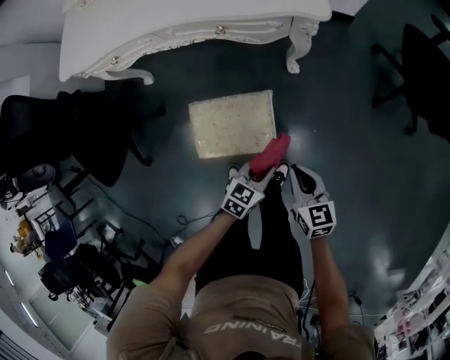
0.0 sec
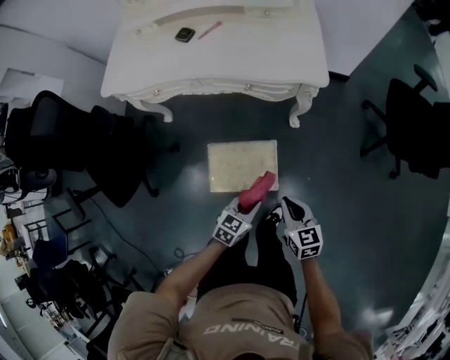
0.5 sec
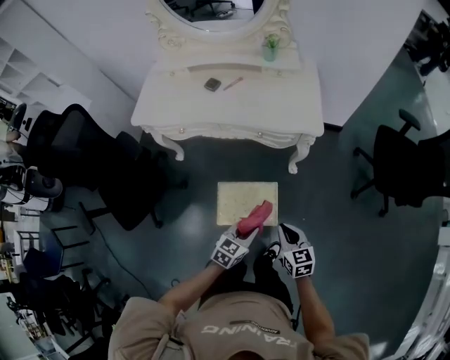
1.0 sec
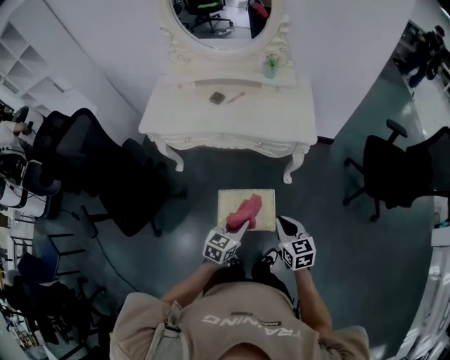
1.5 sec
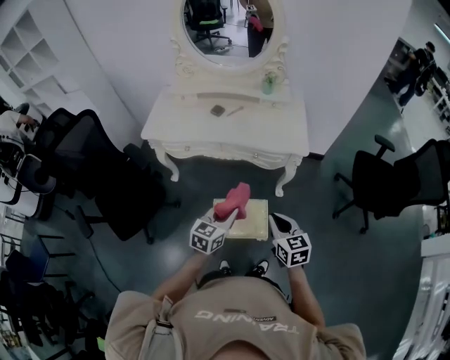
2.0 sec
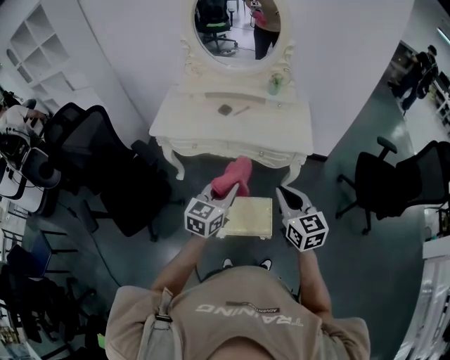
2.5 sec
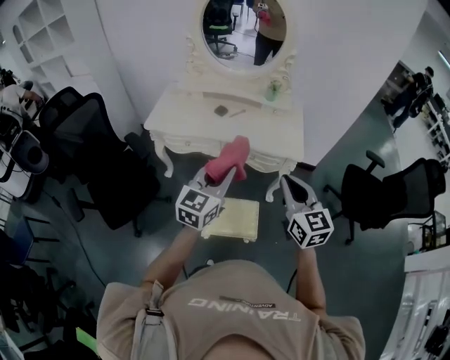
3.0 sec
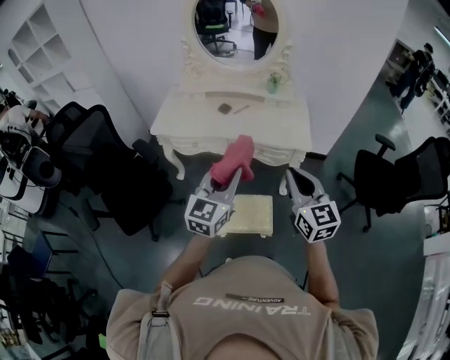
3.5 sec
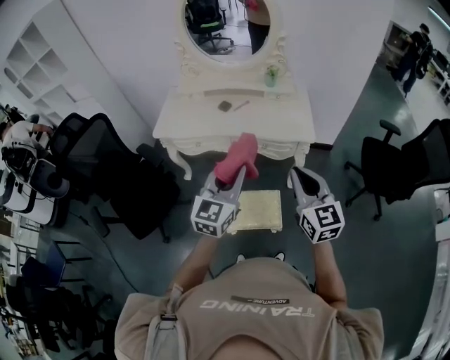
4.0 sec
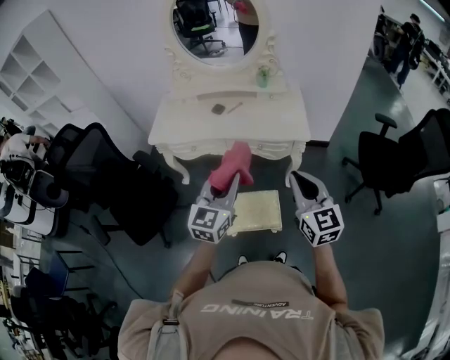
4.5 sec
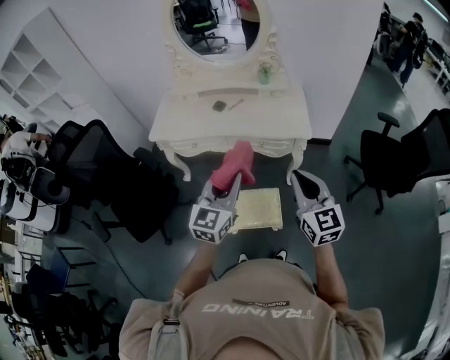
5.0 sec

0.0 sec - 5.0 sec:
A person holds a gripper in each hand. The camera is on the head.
0.0 sec - 2.5 sec: The left gripper heads upward and to the left, covering some 60 cm, and turns by some 40 degrees; the right gripper shifts approximately 50 cm upward, and turns by approximately 30 degrees.
2.5 sec - 5.0 sec: The left gripper goes approximately 5 cm upward, while the right gripper shifts roughly 10 cm to the right and upward.

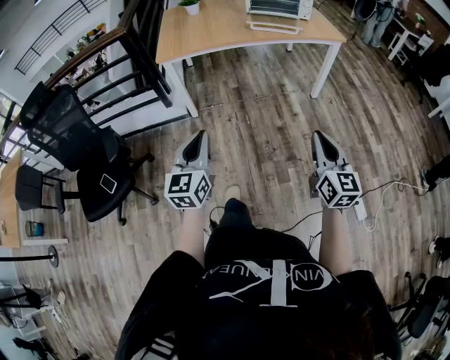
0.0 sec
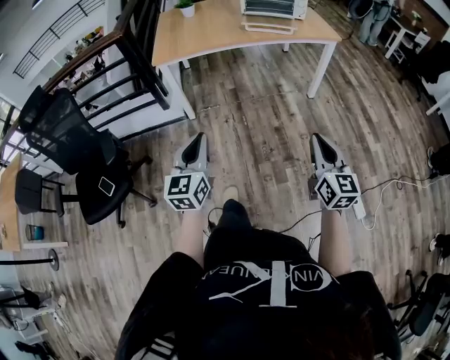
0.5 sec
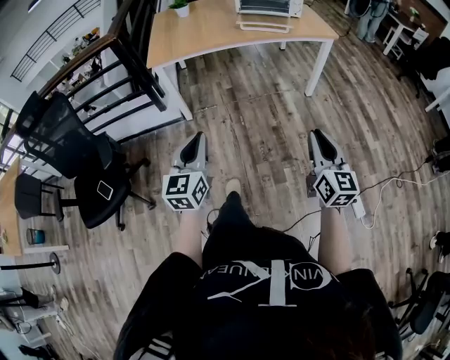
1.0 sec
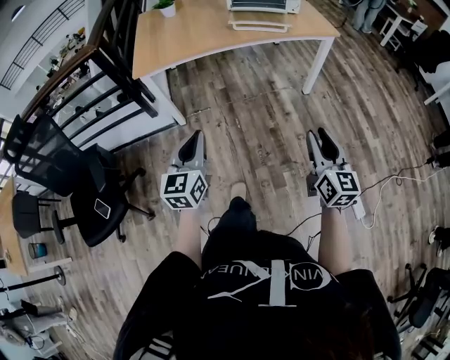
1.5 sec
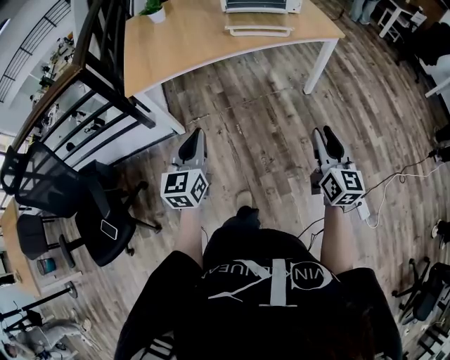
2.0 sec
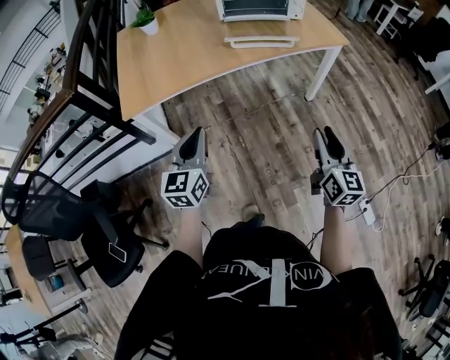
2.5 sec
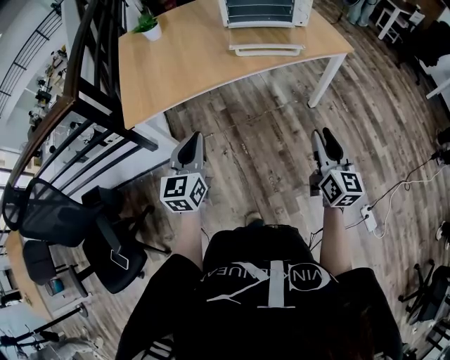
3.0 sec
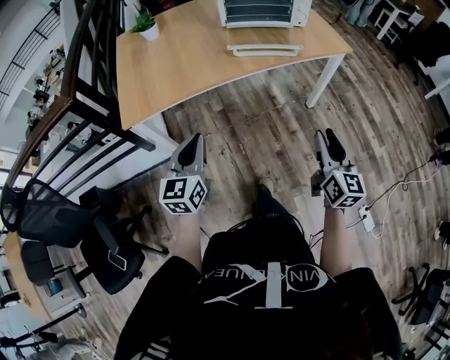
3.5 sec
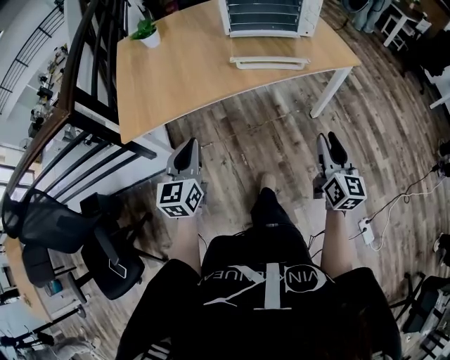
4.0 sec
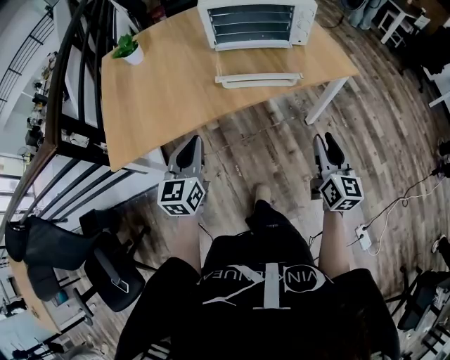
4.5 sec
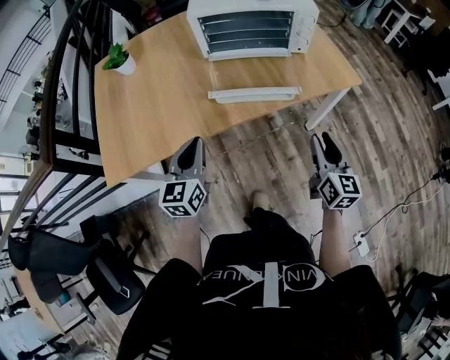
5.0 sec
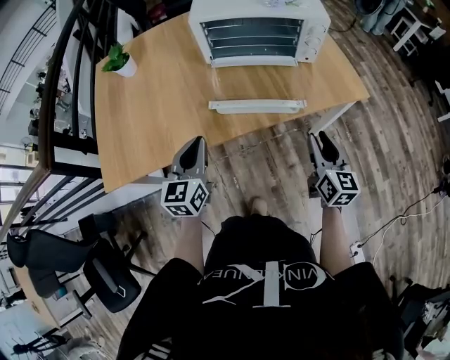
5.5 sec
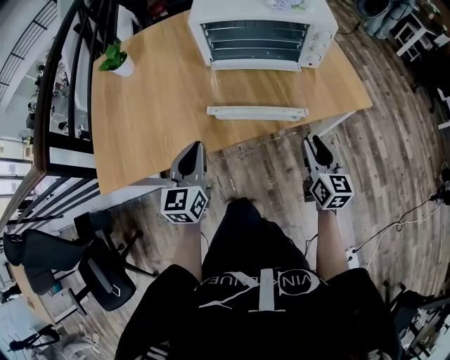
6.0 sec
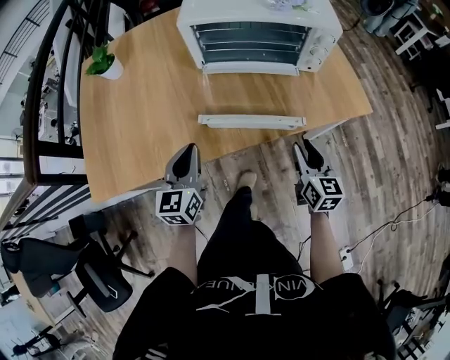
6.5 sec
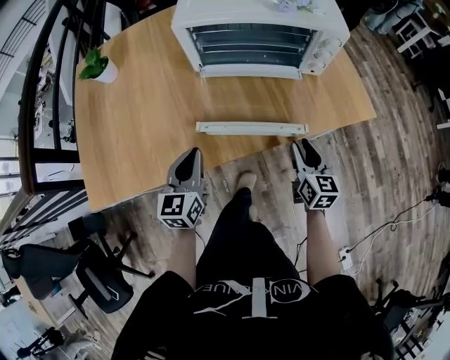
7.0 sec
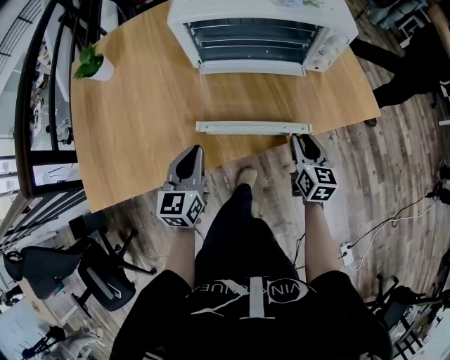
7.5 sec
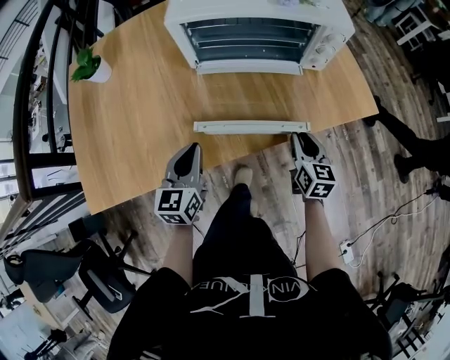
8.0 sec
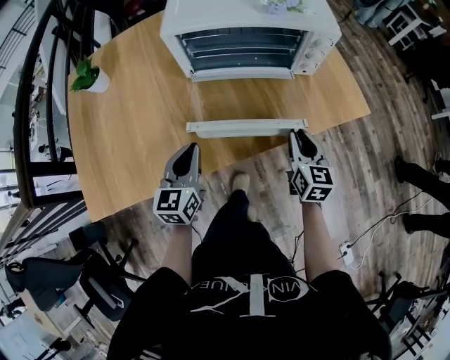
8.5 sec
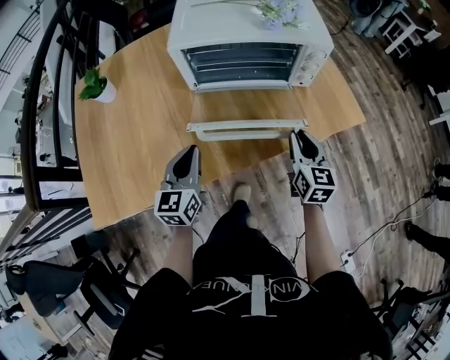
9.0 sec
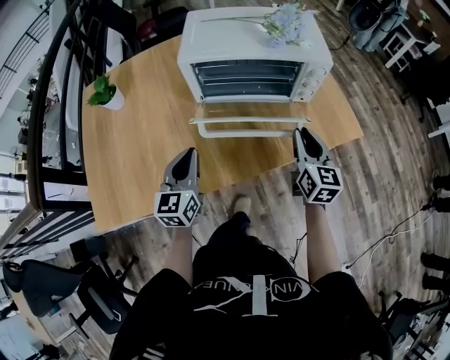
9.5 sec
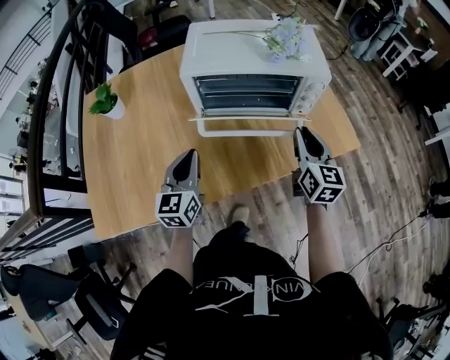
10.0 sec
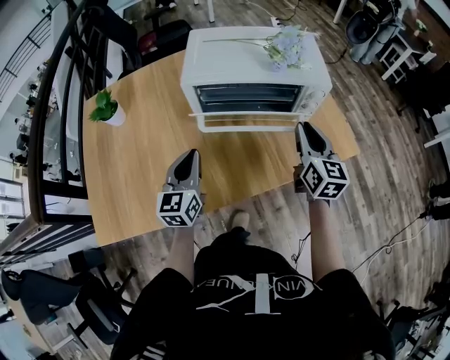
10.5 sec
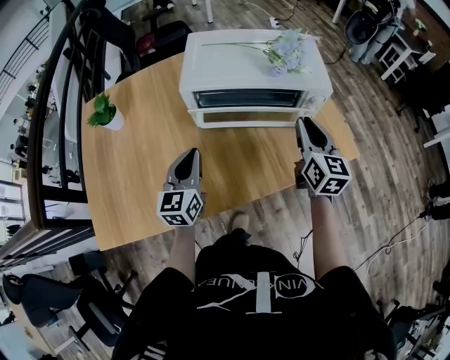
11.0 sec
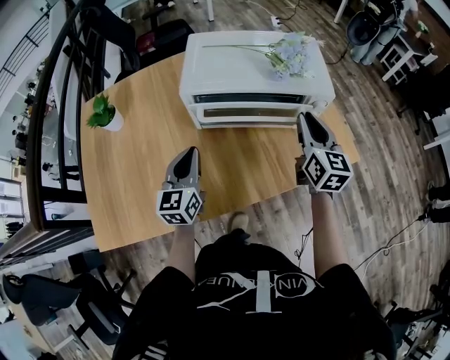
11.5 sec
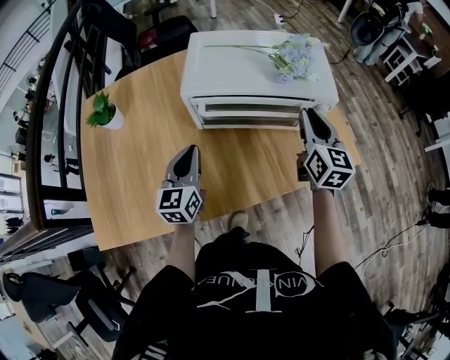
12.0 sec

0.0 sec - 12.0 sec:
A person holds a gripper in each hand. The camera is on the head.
0.0 sec - 2.0 sec: The grippers both shift forward by approximately 25 cm.
2.0 sec - 4.0 sec: Both grippers travel together forward, approximately 20 cm.
4.0 sec - 6.0 sec: Both grippers move forward, approximately 25 cm.
6.0 sec - 8.0 sec: Both grippers travel together forward and downward, some 10 cm.
8.0 sec - 10.0 sec: The right gripper heads upward and forward, covering roughly 20 cm, while the left gripper is displaced upward and forward by approximately 10 cm.
10.0 sec - 12.0 sec: The left gripper travels forward by some 5 cm; the right gripper moves forward and upward, approximately 10 cm.

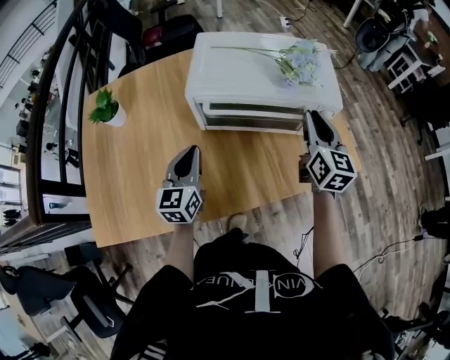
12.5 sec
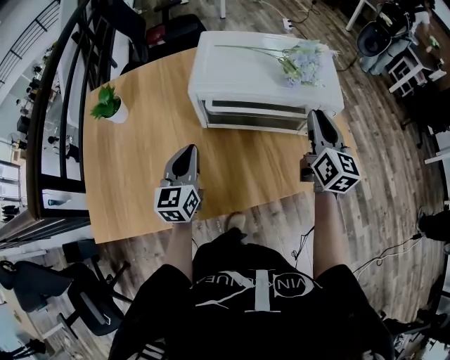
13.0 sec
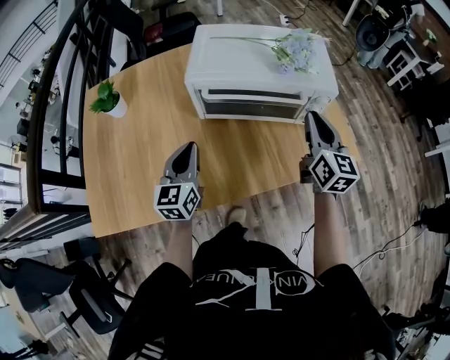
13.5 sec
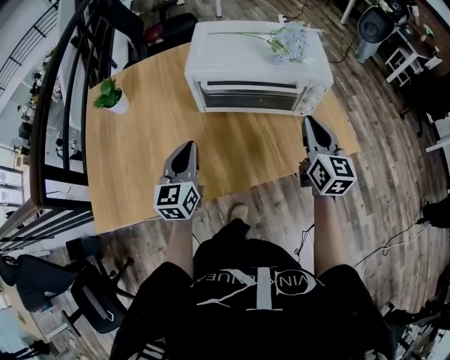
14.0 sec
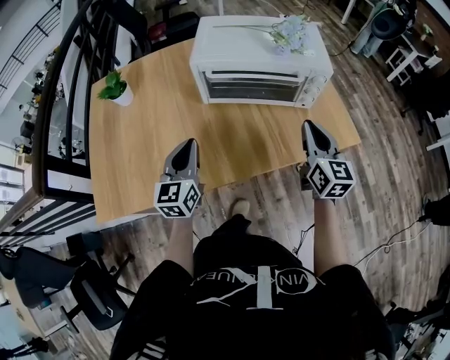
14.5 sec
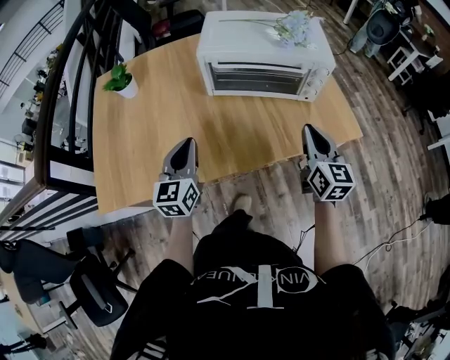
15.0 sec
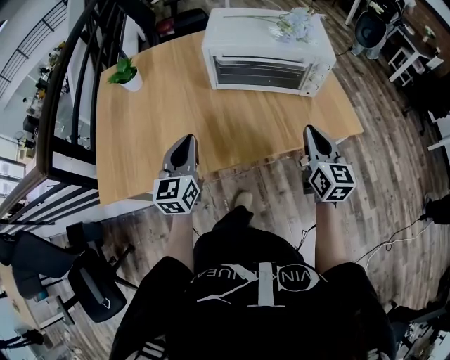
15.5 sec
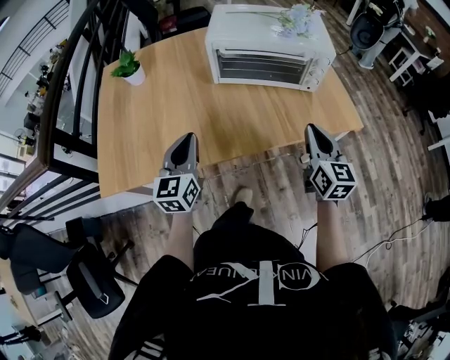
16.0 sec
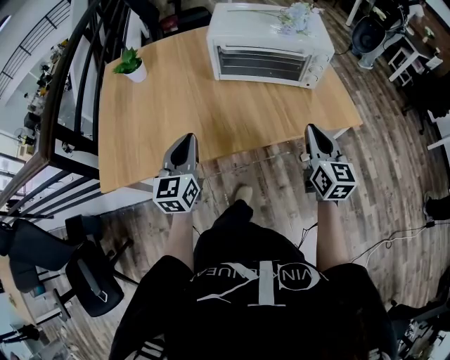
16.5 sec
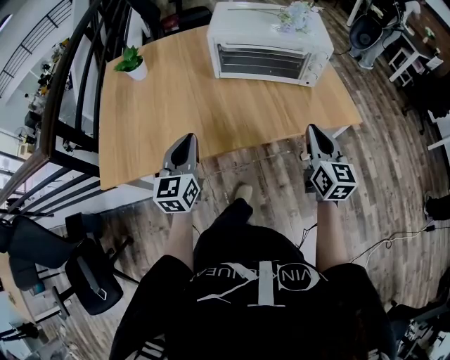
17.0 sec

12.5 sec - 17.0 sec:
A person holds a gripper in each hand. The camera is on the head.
12.5 sec - 14.5 sec: The two grippers go roughly 10 cm backward.
14.5 sec - 17.0 sec: The grippers both shift backward by approximately 10 cm.

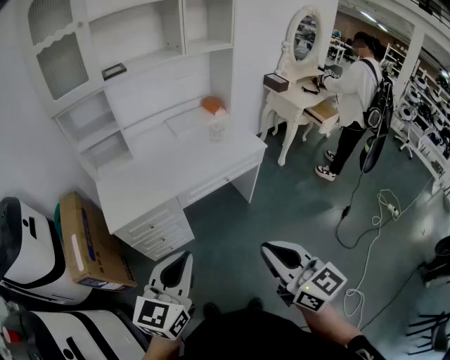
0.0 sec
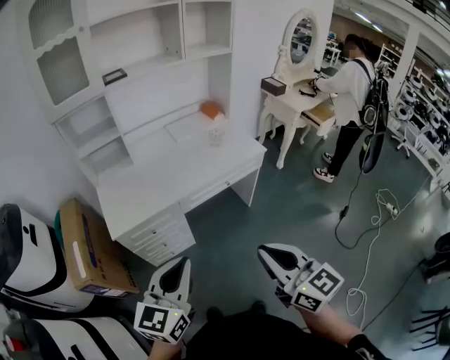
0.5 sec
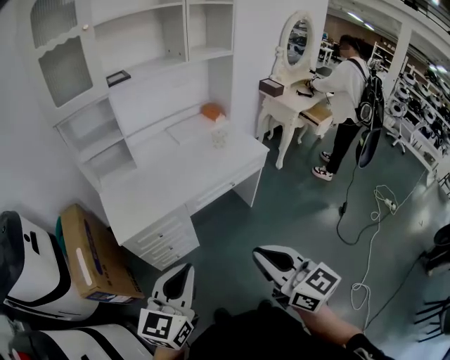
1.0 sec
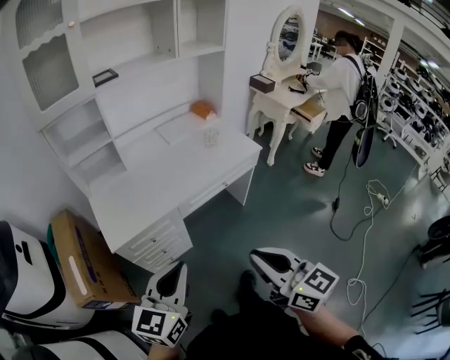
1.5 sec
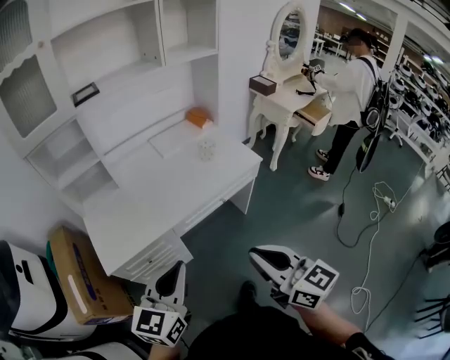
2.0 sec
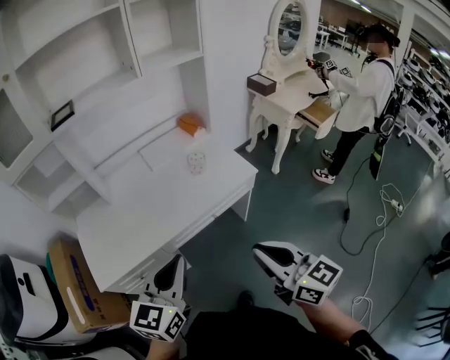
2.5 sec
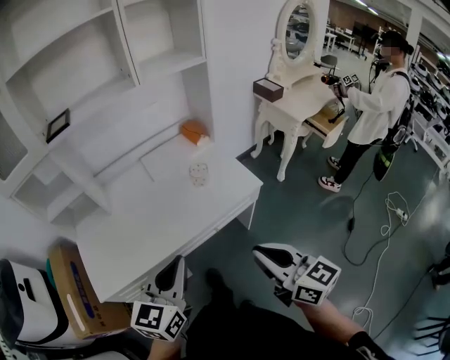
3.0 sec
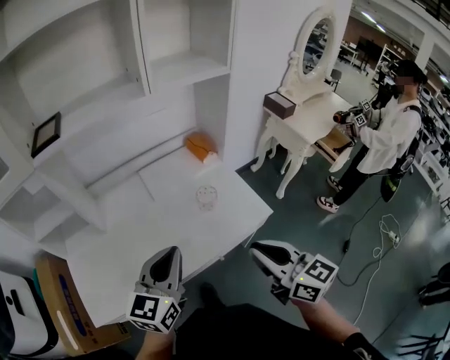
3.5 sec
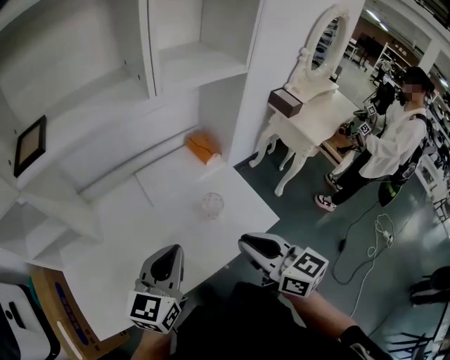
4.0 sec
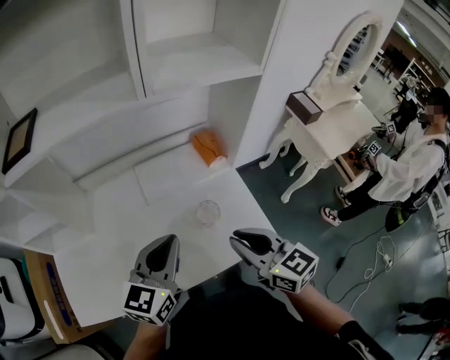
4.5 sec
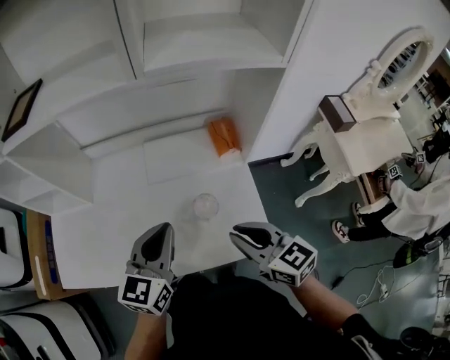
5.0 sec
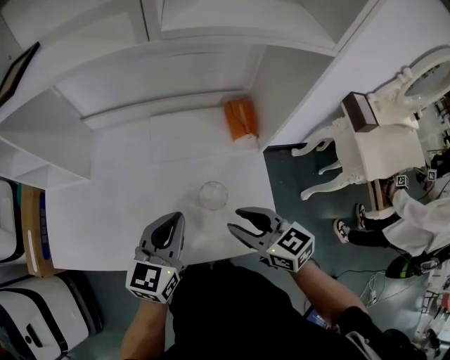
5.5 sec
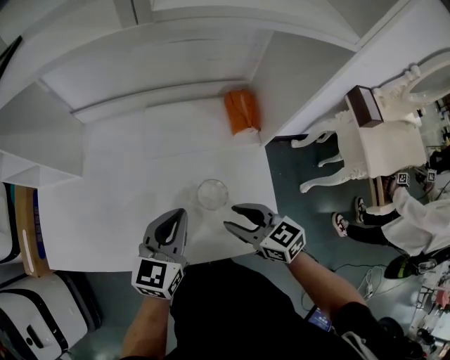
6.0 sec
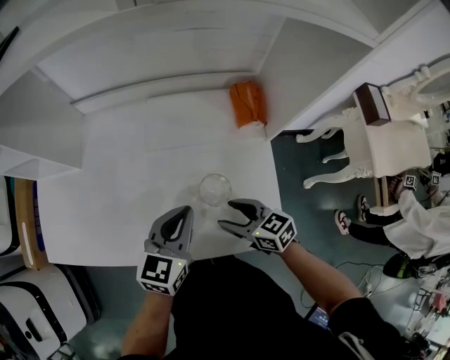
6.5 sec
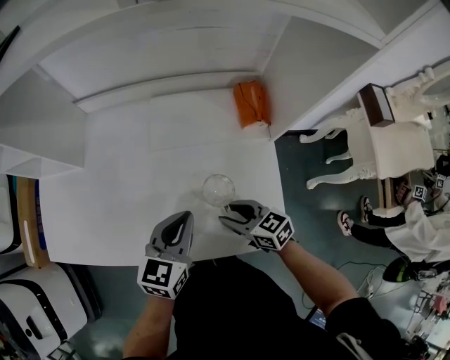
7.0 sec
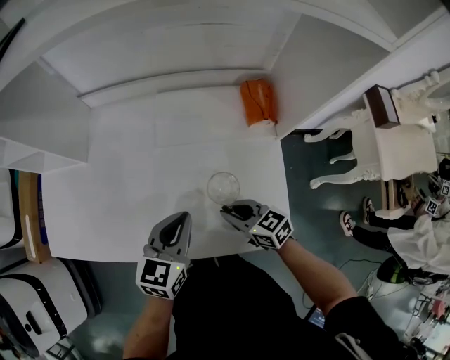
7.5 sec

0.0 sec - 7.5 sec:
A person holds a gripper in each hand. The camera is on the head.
0.0 sec - 2.0 sec: The two grippers go approximately 15 cm forward.
2.0 sec - 4.0 sec: The pair of grippers is taken forward, roughly 40 cm.
4.0 sec - 5.5 sec: The left gripper ends up approximately 15 cm from where it was, and changes its angle by some 20 degrees; the right gripper shifts by about 20 cm, rotates approximately 40 degrees, and opens its fingers.
5.5 sec - 7.5 sec: The right gripper moves downward, roughly 15 cm, and opens, then closes once more; the left gripper shifts about 10 cm downward.
